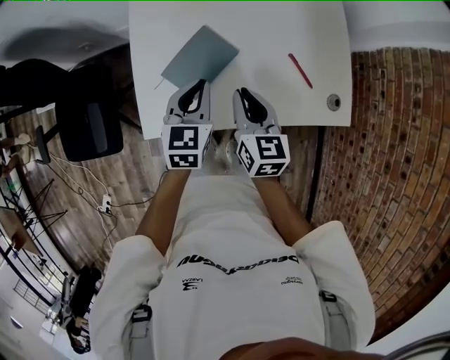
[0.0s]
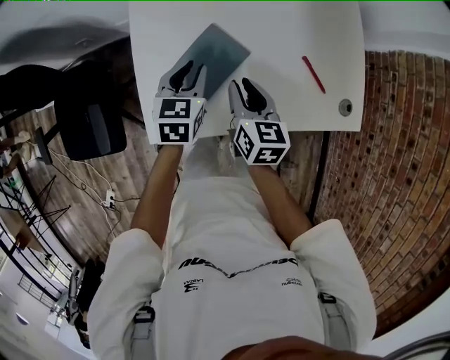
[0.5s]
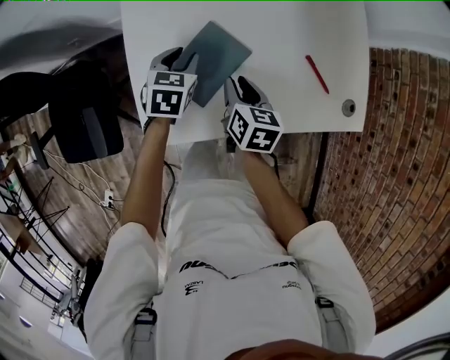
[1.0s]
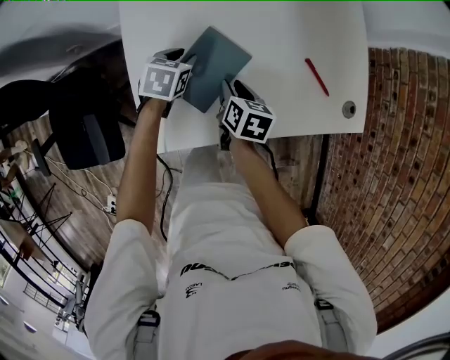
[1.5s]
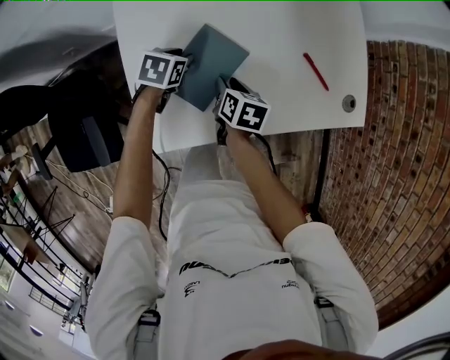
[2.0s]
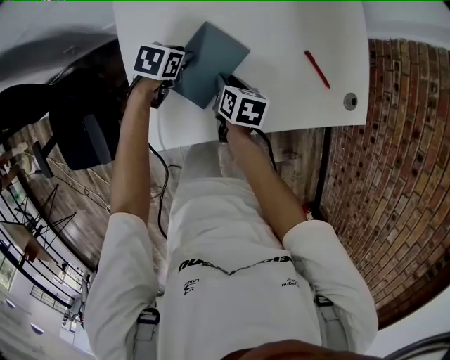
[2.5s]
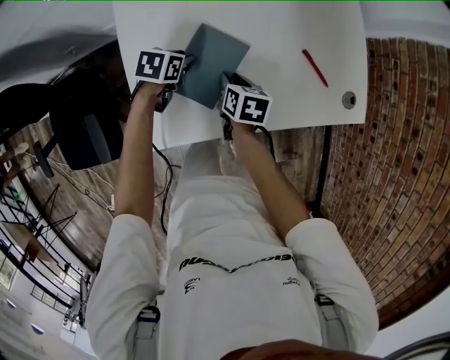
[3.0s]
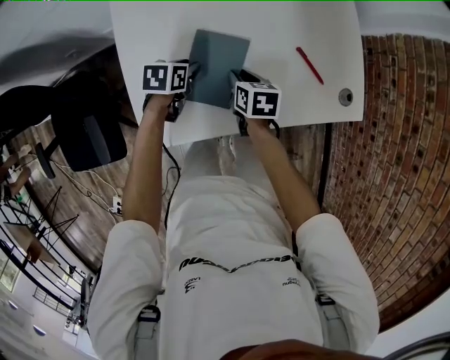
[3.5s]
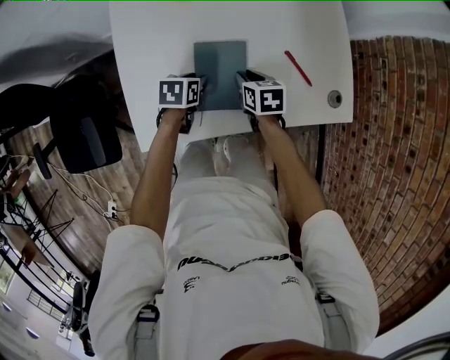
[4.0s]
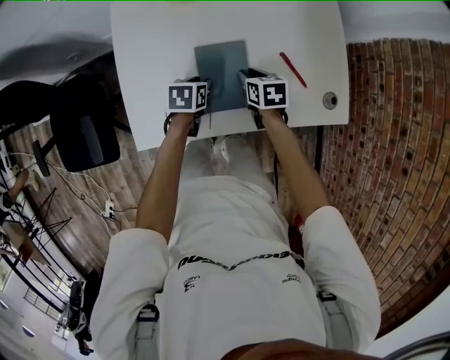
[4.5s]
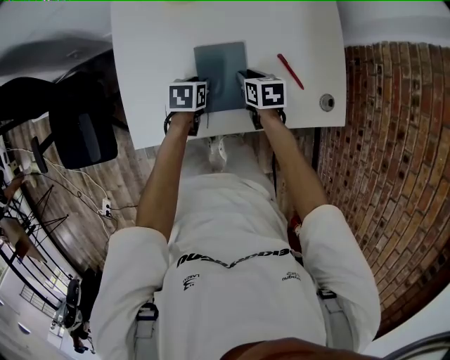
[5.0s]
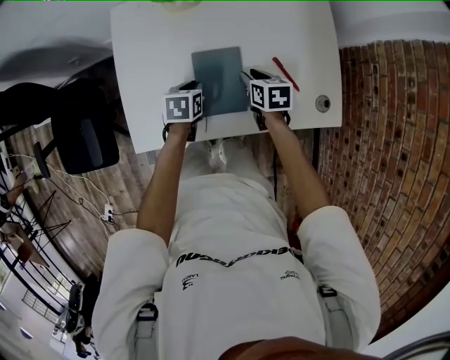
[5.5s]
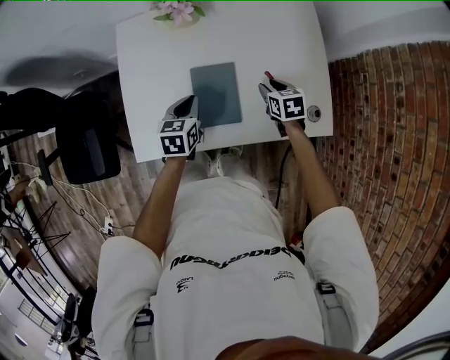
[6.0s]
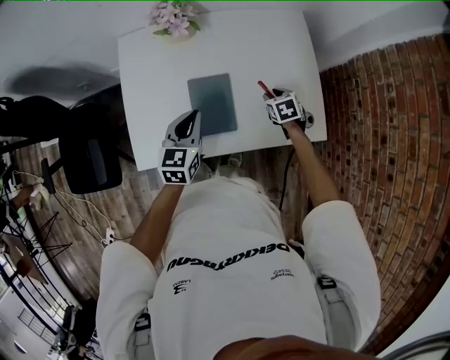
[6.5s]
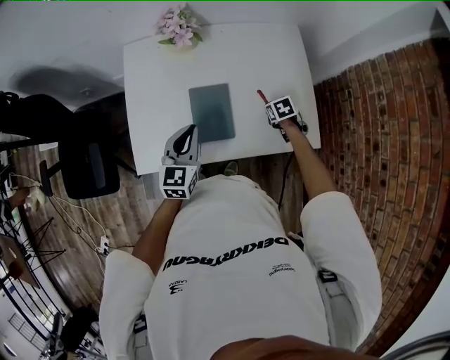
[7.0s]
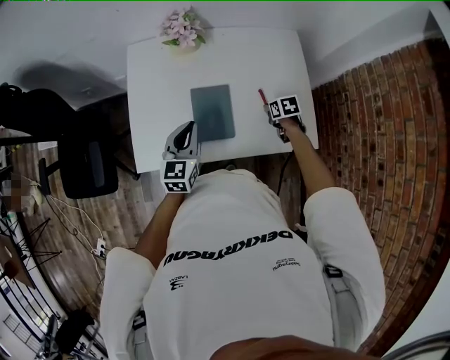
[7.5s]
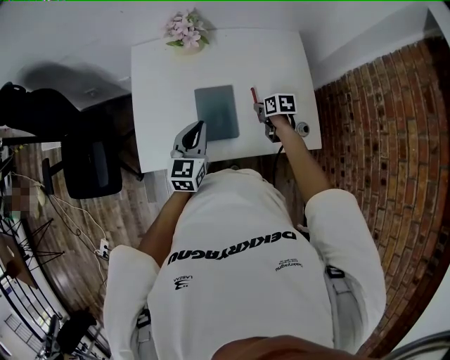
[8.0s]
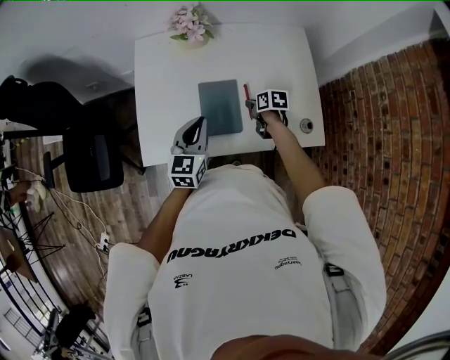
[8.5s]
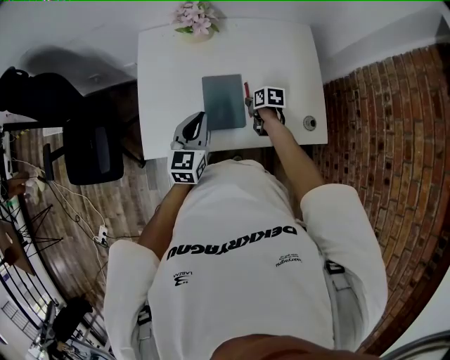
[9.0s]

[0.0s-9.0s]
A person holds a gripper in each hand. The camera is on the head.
0.0s to 2.0s: The right gripper heads downward, covering approximately 20 cm, turns by some 40 degrees, and opens. Meanwhile the left gripper travels downward, forward and to the left by about 25 cm, rotates approximately 40 degrees, and opens up.
2.0s to 4.5s: The right gripper is displaced to the right by about 10 cm, and turns by approximately 30 degrees, while the left gripper travels to the right and backward by about 15 cm.
4.5s to 7.0s: The left gripper moves upward, approximately 20 cm, tips its fingers upward by about 40 degrees, and closes; the right gripper is displaced to the right by approximately 15 cm, and changes its angle by about 20 degrees.
7.0s to 9.0s: The right gripper moves to the left, about 15 cm, and changes its angle by roughly 30 degrees.

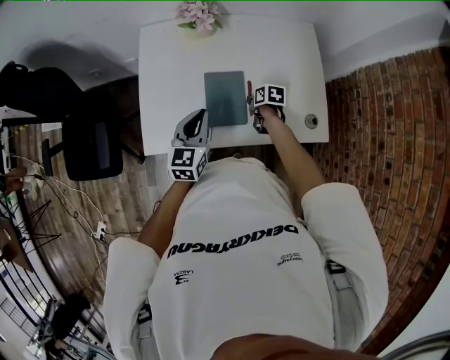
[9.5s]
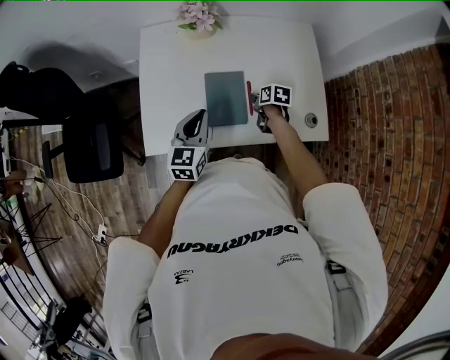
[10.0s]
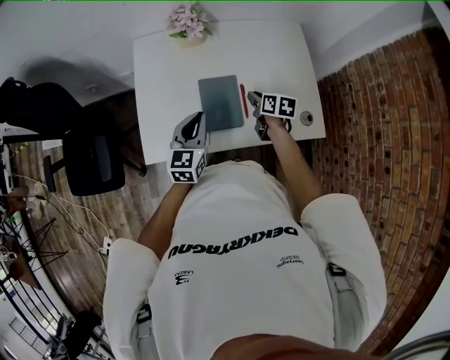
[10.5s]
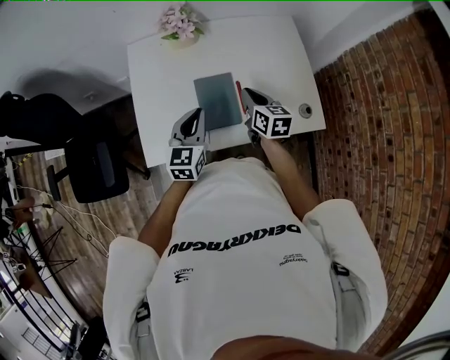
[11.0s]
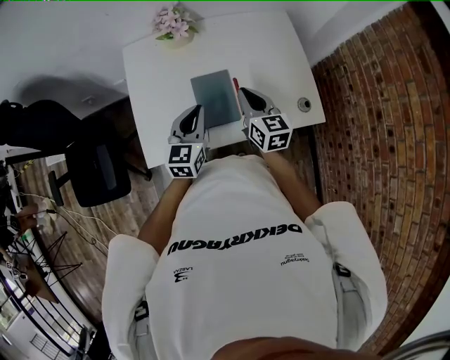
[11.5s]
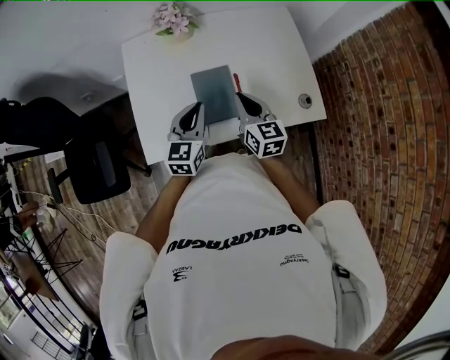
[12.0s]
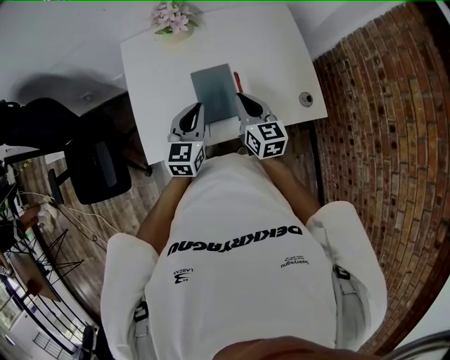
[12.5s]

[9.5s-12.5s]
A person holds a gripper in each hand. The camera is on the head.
9.5s to 11.0s: The right gripper is displaced upward by some 20 cm, and angles its fingers upward, by approximately 30 degrees.
11.0s to 12.5s: The right gripper changes place by approximately 5 cm.

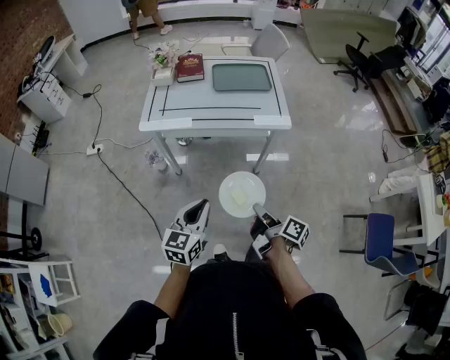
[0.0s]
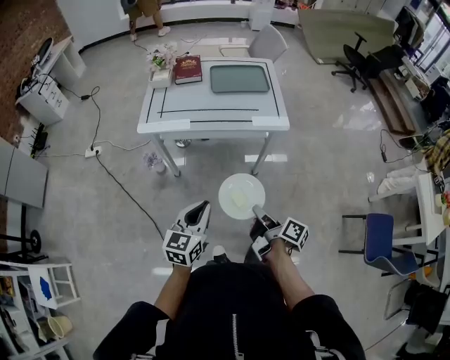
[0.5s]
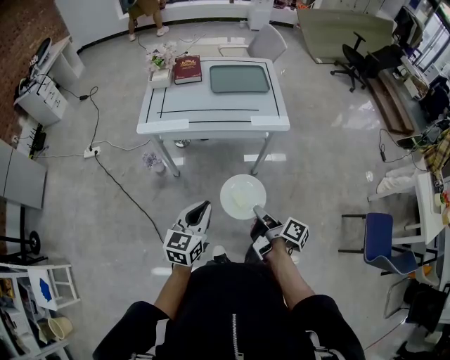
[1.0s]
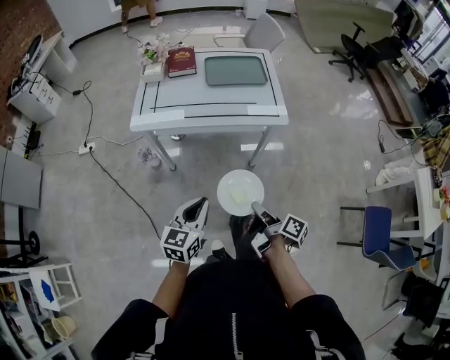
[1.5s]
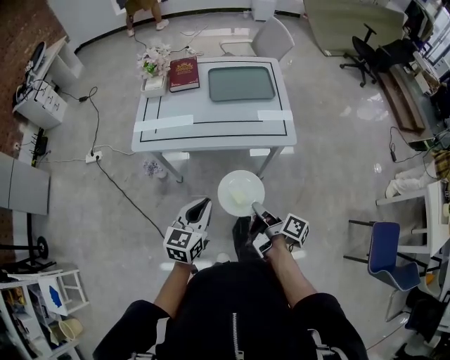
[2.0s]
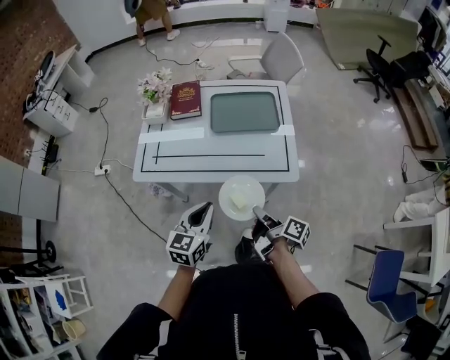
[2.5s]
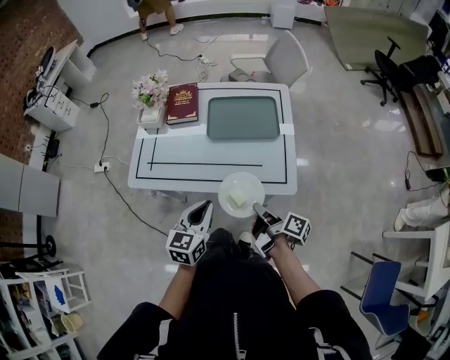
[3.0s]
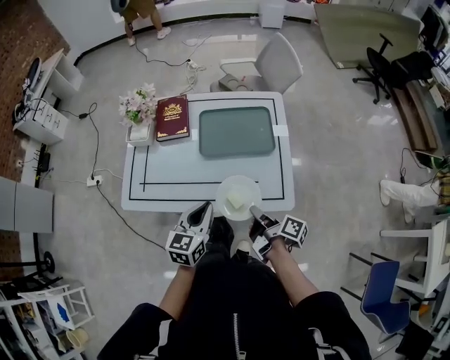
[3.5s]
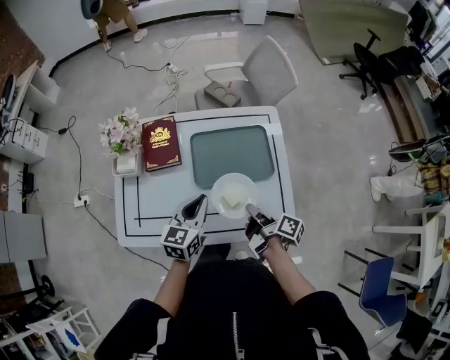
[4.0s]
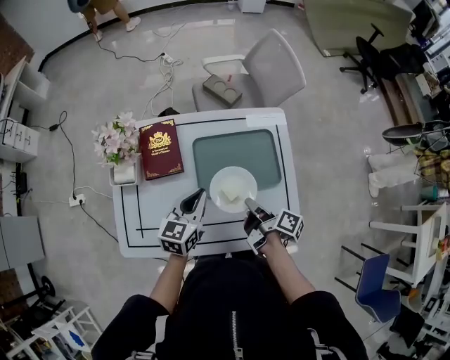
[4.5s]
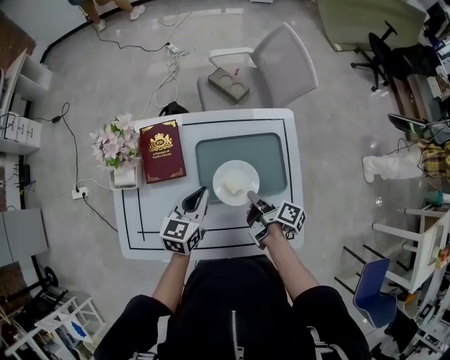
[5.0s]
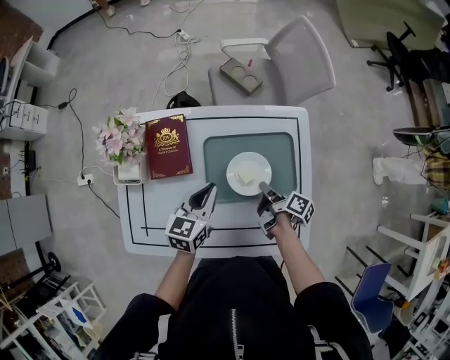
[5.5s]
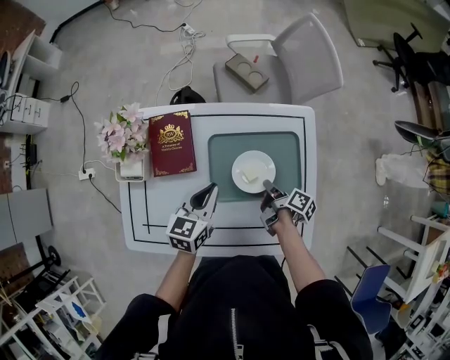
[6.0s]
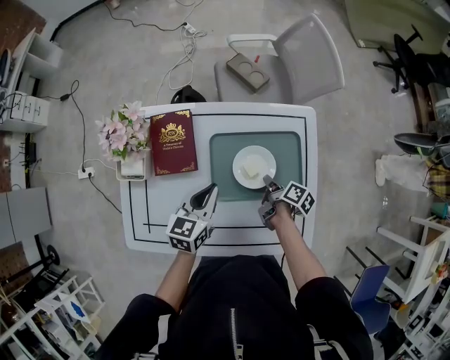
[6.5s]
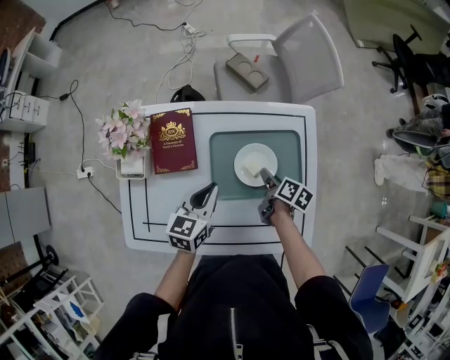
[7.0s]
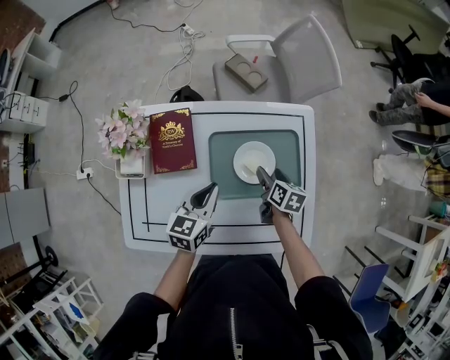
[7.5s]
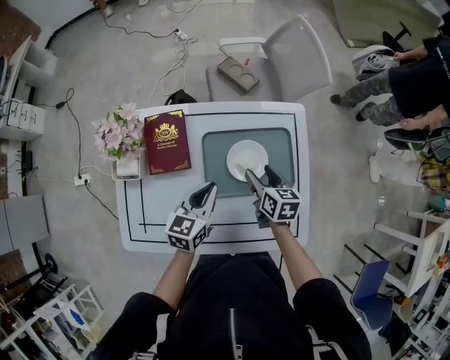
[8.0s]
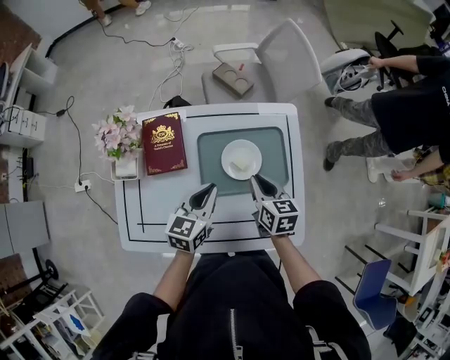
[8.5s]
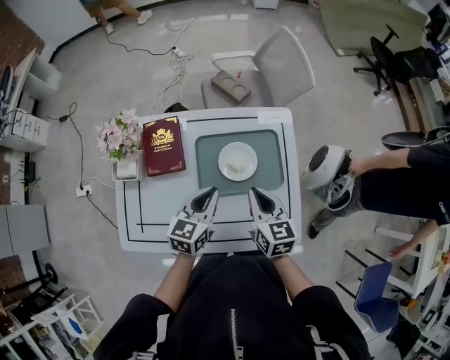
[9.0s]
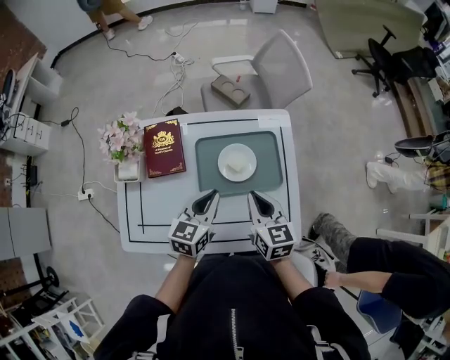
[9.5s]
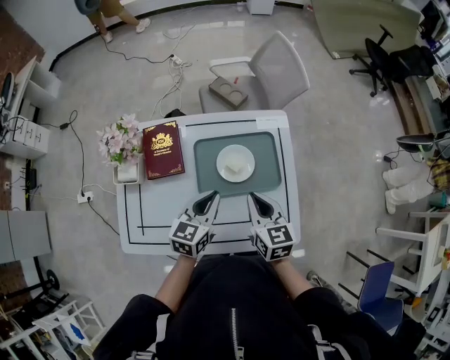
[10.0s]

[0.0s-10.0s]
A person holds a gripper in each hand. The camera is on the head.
0.0s to 2.0s: The left gripper shifts by about 15 cm.
2.0s to 4.0s: The left gripper ends up roughly 50 cm from where it was.
4.0s to 6.0s: The left gripper ends up some 15 cm from where it was.
8.0s to 10.0s: The left gripper shifts by about 10 cm.

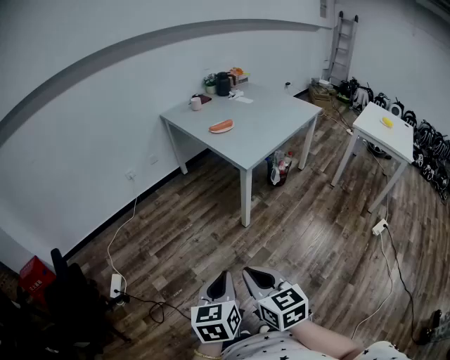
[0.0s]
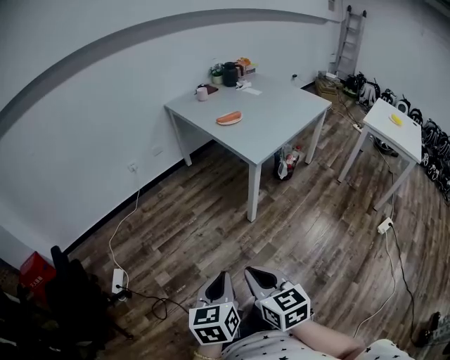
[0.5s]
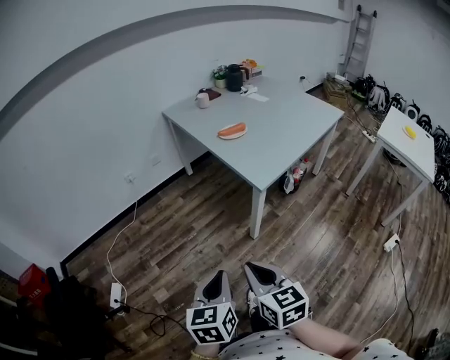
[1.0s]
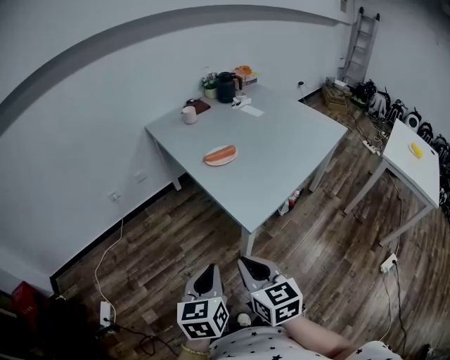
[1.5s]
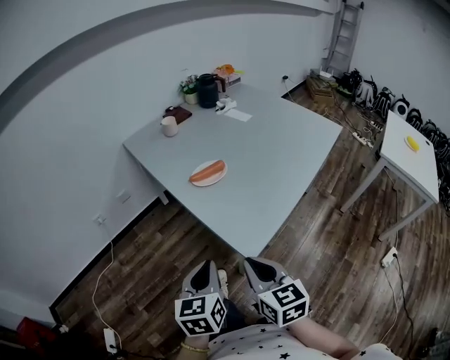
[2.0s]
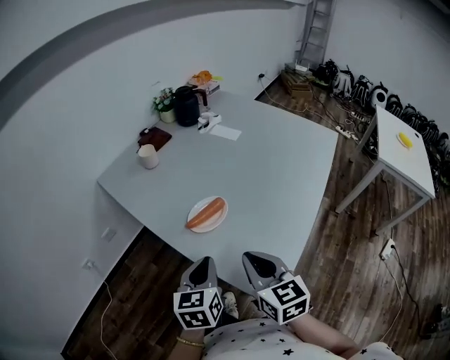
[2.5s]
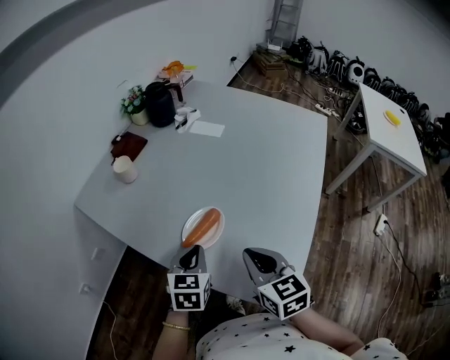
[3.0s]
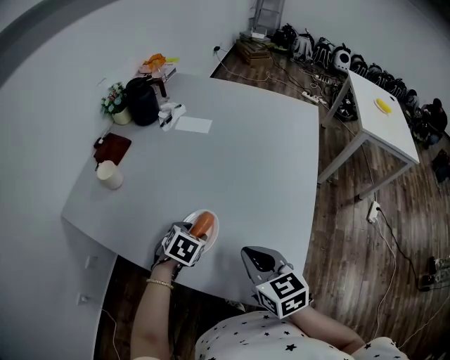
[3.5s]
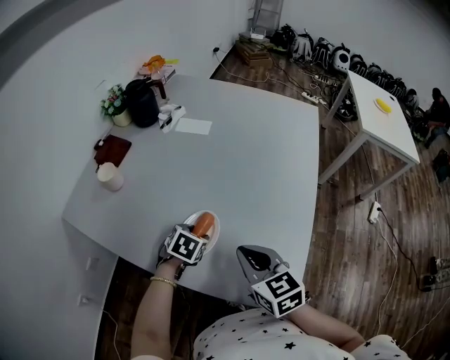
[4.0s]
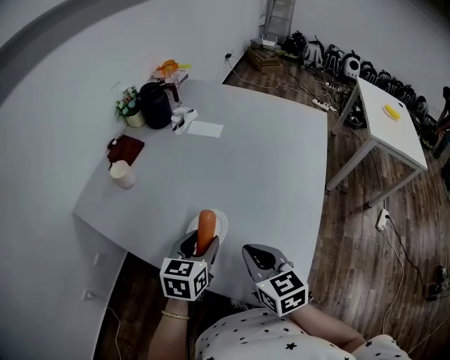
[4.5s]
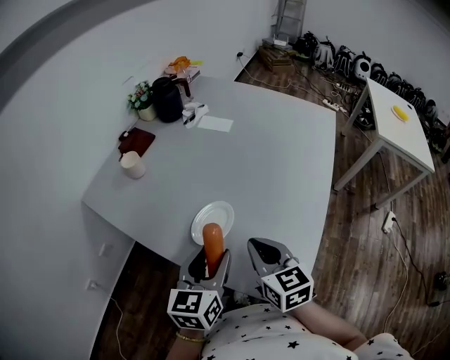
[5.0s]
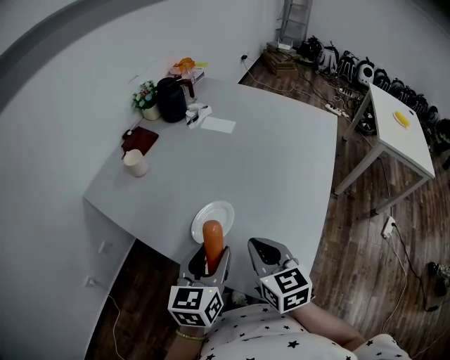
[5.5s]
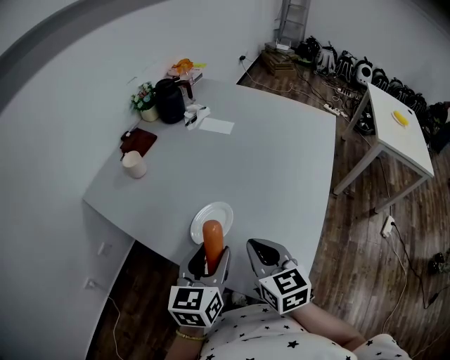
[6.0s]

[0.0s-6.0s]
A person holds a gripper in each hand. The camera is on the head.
0.0s to 2.0s: The two grippers travel together, forward, approximately 50 cm.
2.0s to 4.0s: The right gripper shifts by some 30 cm, and rotates some 20 degrees, while the left gripper shifts by some 50 cm, tilts its fingers approximately 40 degrees downward, and opens.
4.0s to 6.0s: The left gripper heads upward and backward, covering some 20 cm, and points its fingers about 40 degrees further upward.
